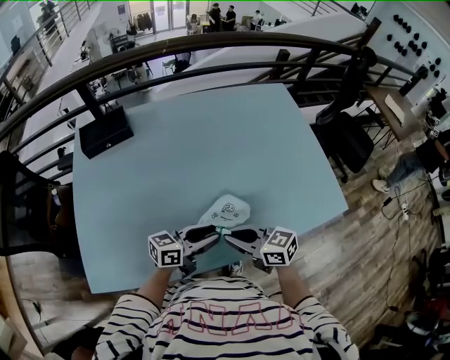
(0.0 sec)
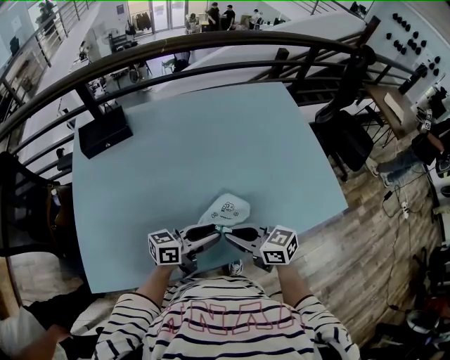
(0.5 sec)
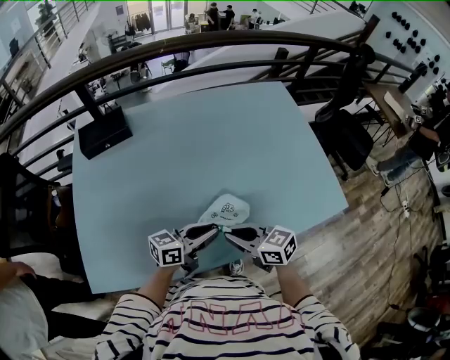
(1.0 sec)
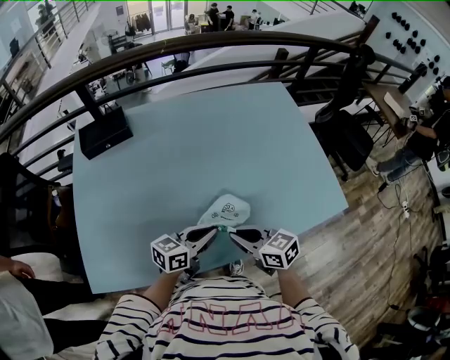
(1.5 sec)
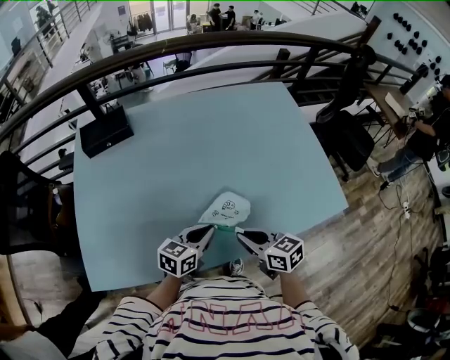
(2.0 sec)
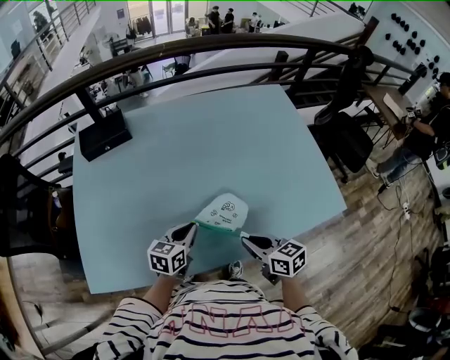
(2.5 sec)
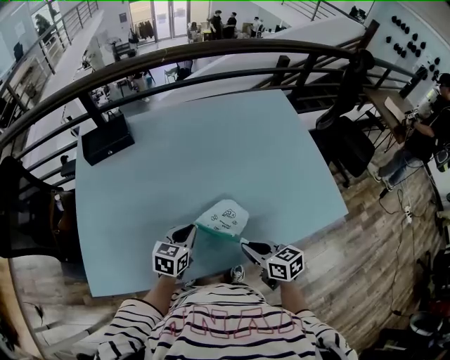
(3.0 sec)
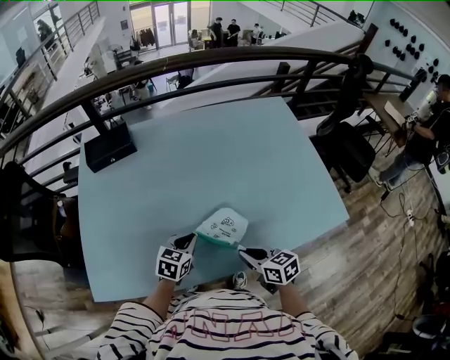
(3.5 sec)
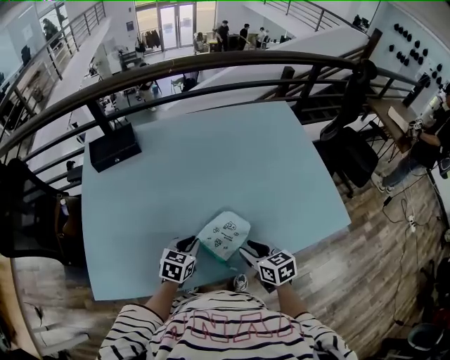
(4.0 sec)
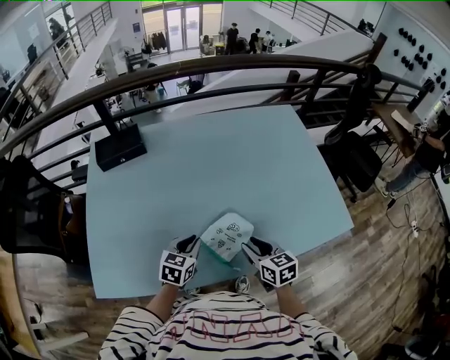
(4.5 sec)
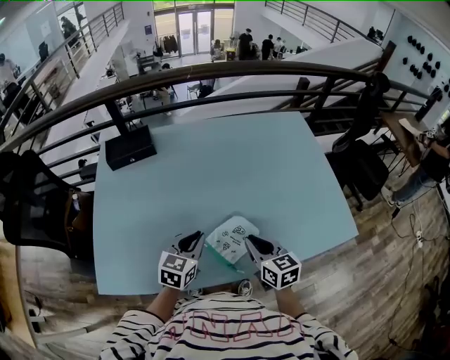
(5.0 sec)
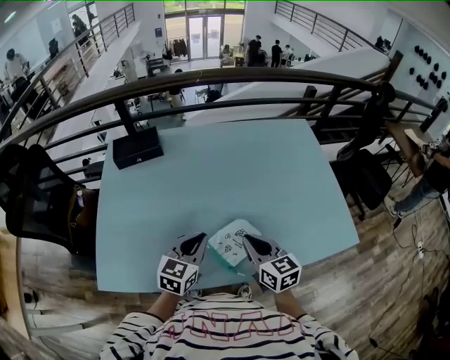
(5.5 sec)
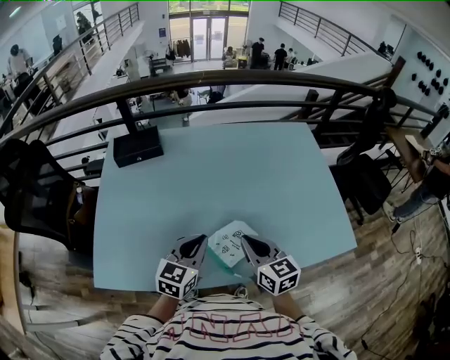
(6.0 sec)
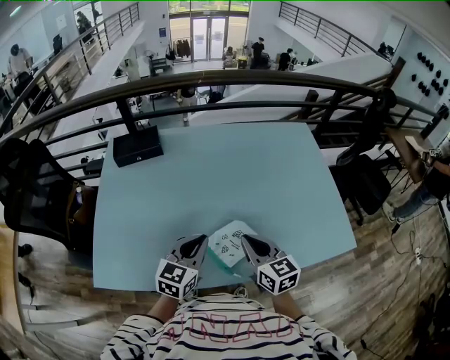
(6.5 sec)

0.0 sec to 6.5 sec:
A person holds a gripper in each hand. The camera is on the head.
0.0 sec to 2.0 sec: The left gripper turns by approximately 30 degrees, and closes, while the right gripper changes place by about 5 cm.
2.0 sec to 4.5 sec: The right gripper opens. Meanwhile the left gripper goes approximately 5 cm to the left, and changes its angle by approximately 20 degrees.
4.5 sec to 6.5 sec: The grippers both shift upward by approximately 10 cm. The right gripper closes up.

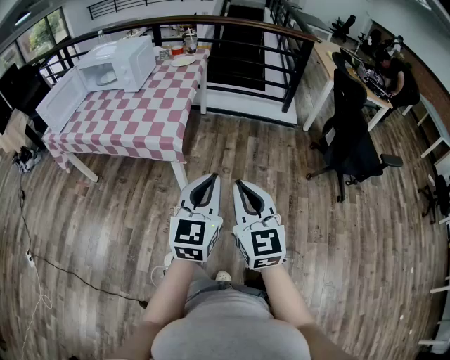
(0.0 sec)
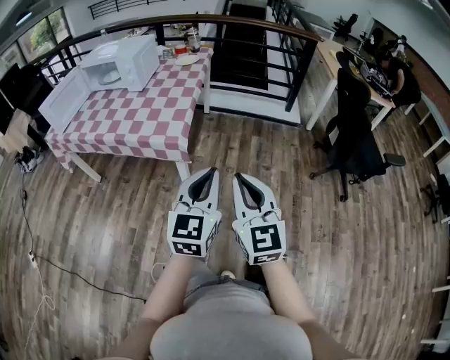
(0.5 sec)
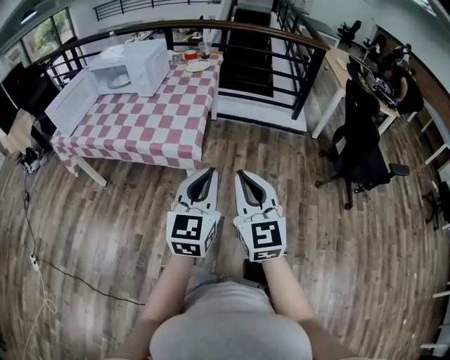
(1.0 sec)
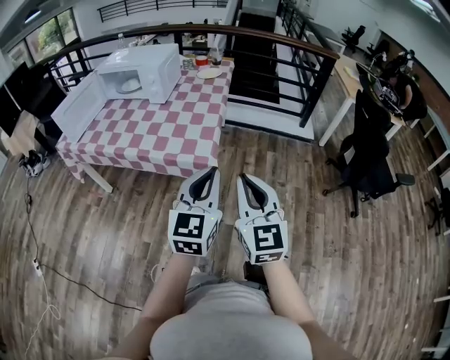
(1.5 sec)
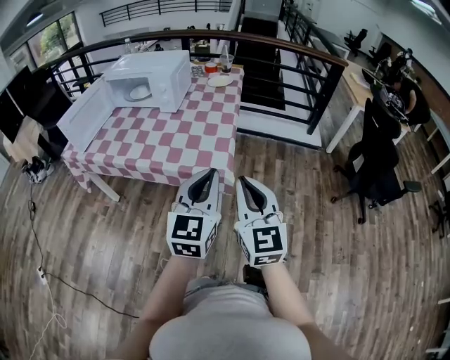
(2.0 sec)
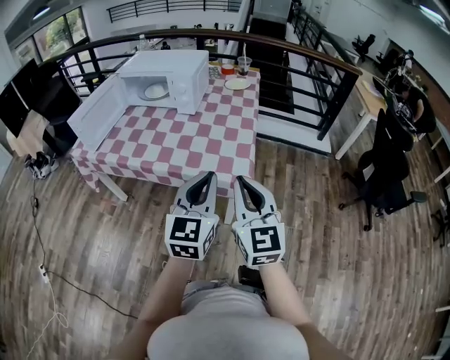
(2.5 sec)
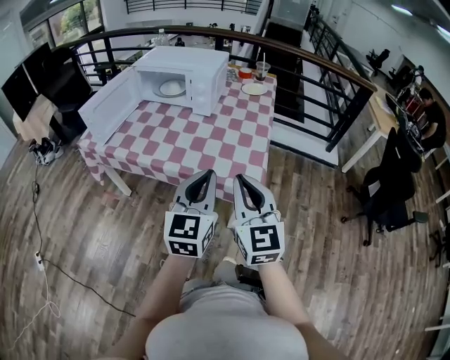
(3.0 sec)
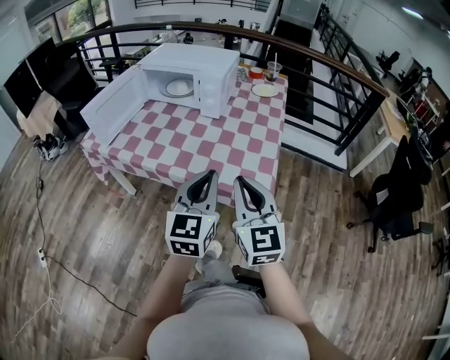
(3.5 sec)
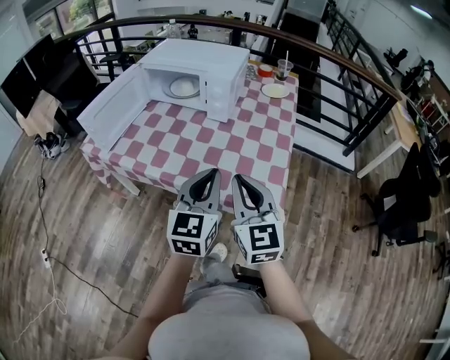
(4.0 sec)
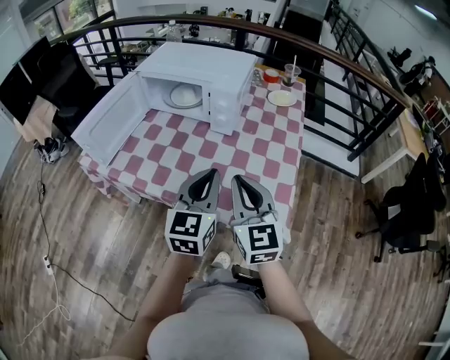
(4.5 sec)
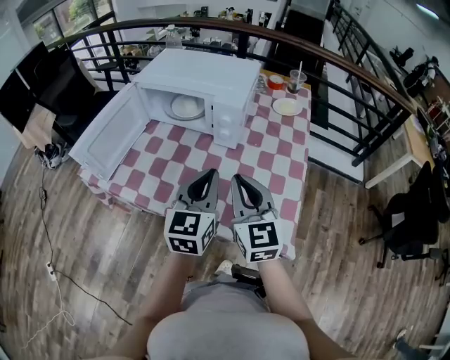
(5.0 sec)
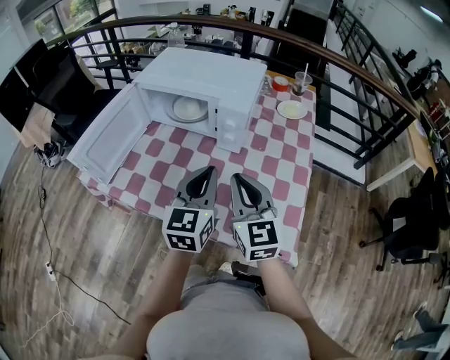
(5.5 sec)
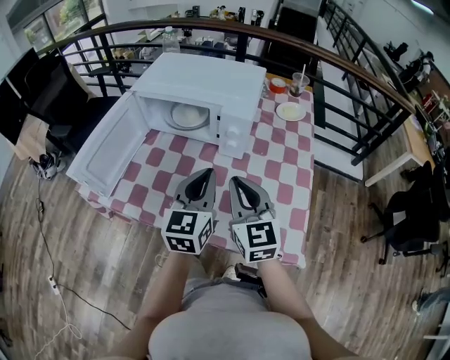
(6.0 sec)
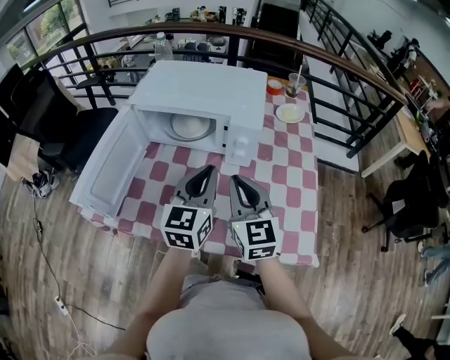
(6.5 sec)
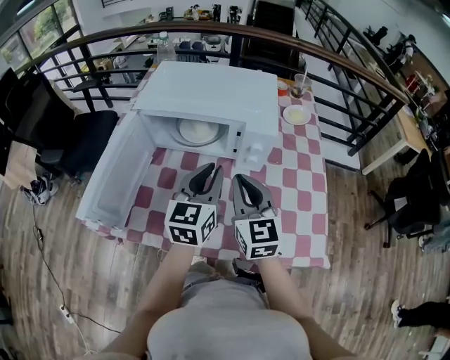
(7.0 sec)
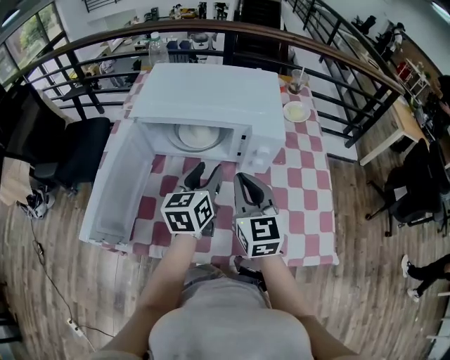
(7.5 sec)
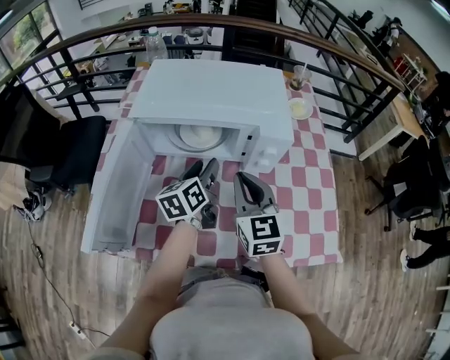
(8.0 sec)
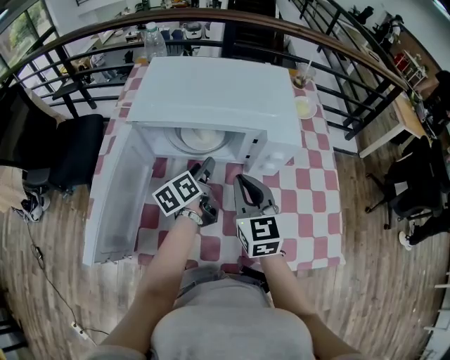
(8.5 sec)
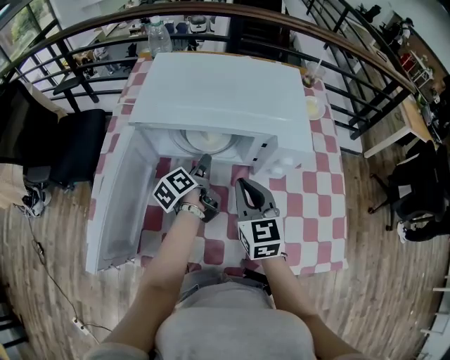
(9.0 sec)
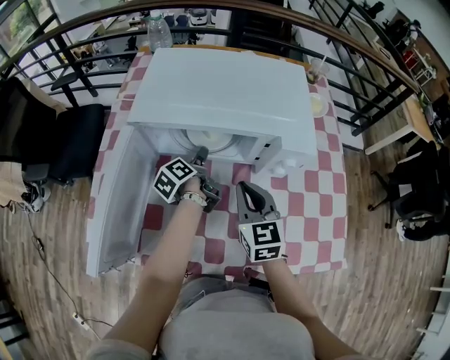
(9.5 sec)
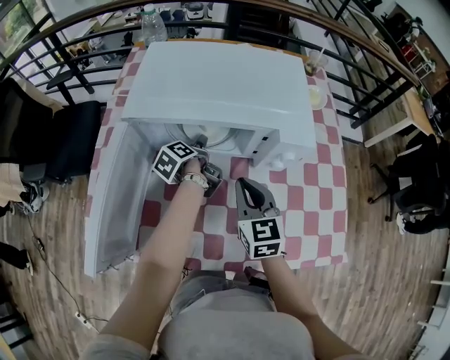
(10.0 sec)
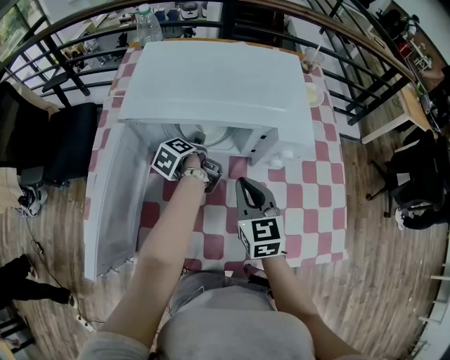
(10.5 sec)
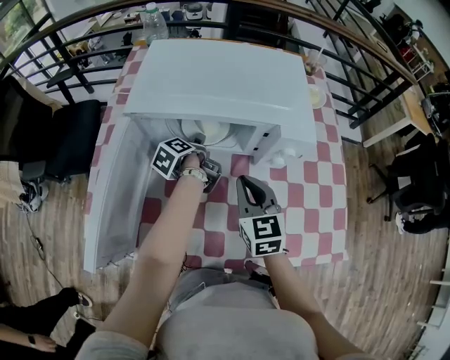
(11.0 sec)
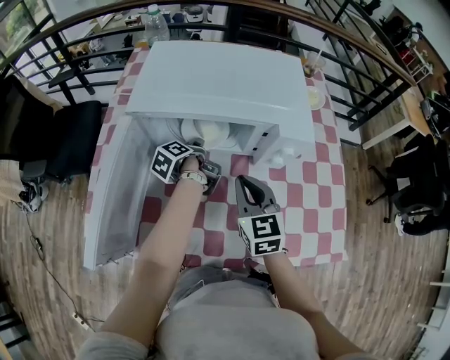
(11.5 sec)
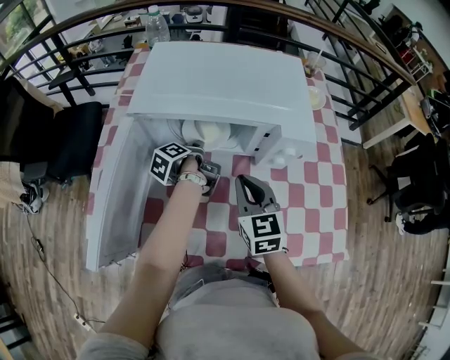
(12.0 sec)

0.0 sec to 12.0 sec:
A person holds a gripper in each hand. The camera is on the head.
0.0 sec to 2.0 sec: Both grippers travel together to the left and forward, about 25 cm.
2.0 sec to 4.0 sec: The two grippers go some 25 cm to the left and forward.
4.0 sec to 6.0 sec: The grippers both shift forward by roughly 20 cm.
6.0 sec to 8.0 sec: The left gripper moves forward, to the left and downward, approximately 25 cm, changes its angle by some 30 degrees, and opens up, while the right gripper heads to the left and forward, covering some 15 cm.
8.0 sec to 10.0 sec: The right gripper is displaced downward by approximately 5 cm; the left gripper goes approximately 15 cm downward, forward and to the left, changes its angle by approximately 50 degrees, and opens.
10.0 sec to 12.0 sec: The left gripper closes its fingers.

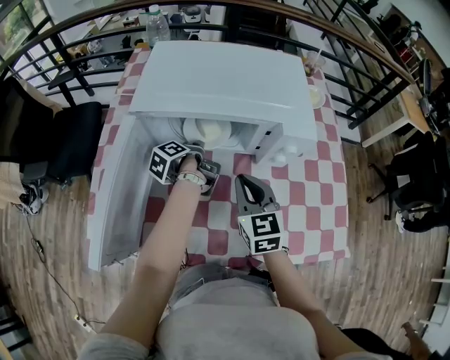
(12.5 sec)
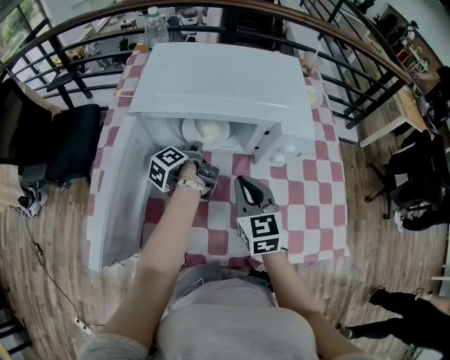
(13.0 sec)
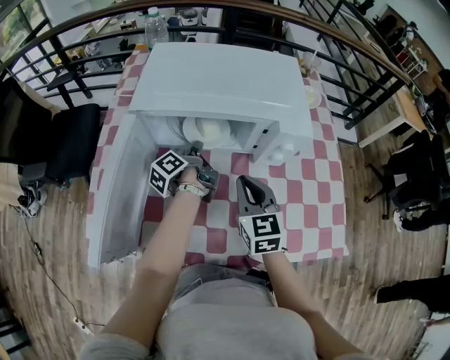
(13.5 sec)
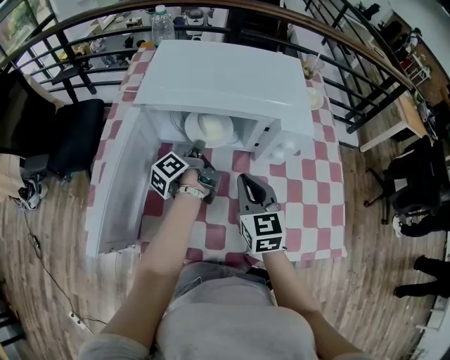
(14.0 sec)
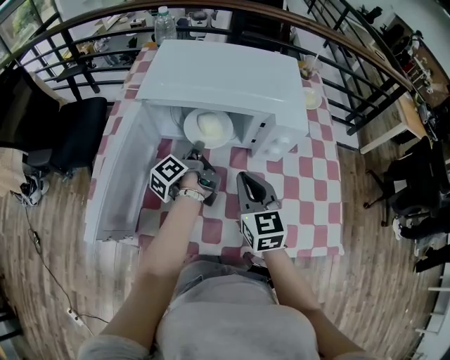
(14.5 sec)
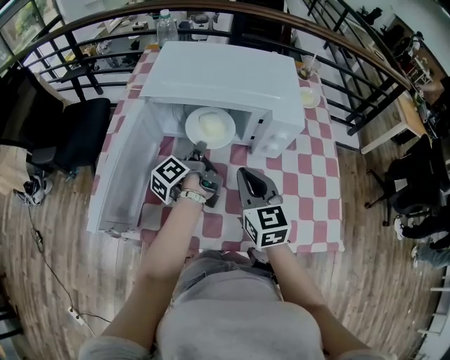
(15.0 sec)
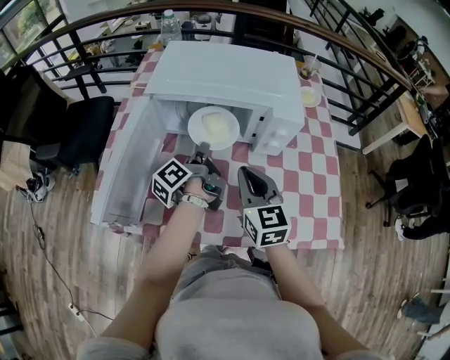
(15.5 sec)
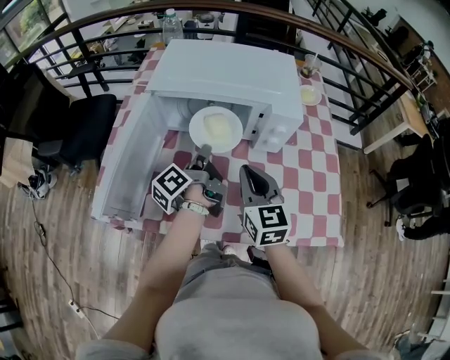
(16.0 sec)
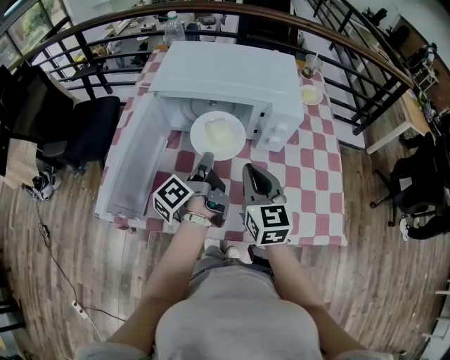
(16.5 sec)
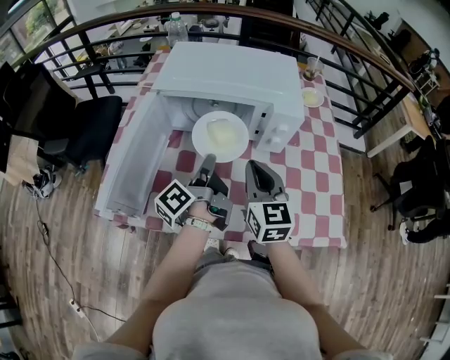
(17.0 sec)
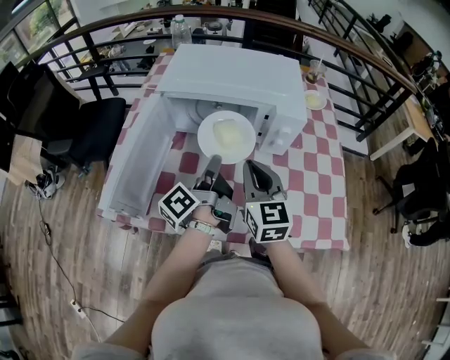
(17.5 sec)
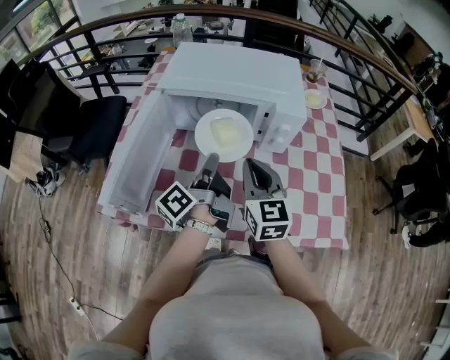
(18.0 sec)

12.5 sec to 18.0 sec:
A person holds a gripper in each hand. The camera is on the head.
12.5 sec to 14.5 sec: The left gripper heads upward, covering about 5 cm, and changes its angle by about 20 degrees.
14.5 sec to 16.0 sec: The right gripper changes place by roughly 5 cm. The left gripper is displaced backward and upward by roughly 10 cm.
16.0 sec to 18.0 sec: The left gripper moves backward, roughly 5 cm.

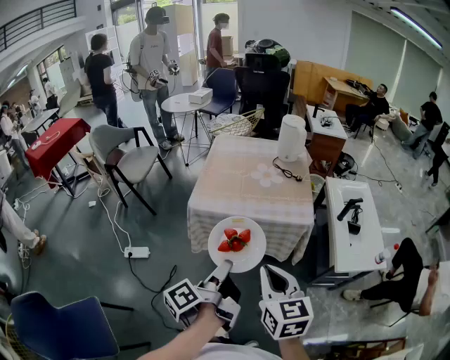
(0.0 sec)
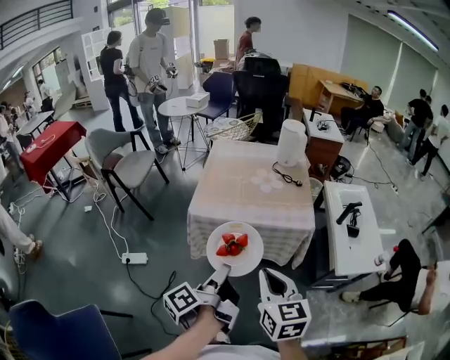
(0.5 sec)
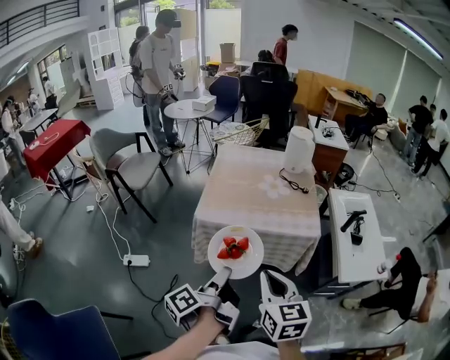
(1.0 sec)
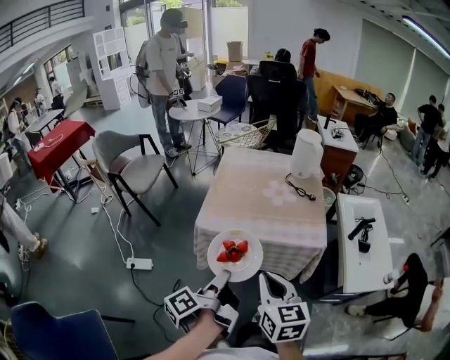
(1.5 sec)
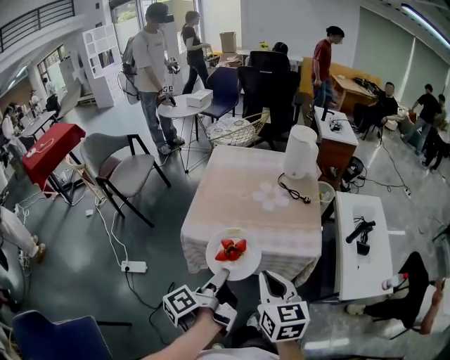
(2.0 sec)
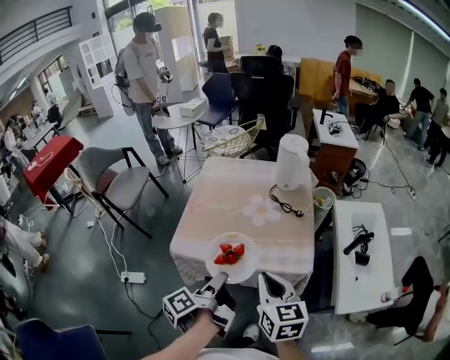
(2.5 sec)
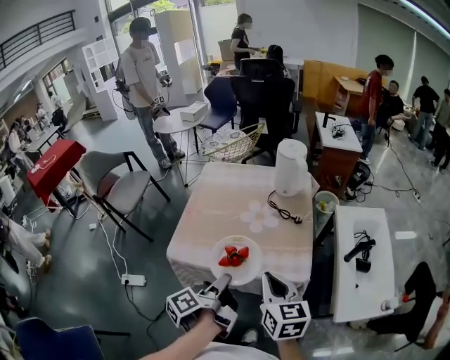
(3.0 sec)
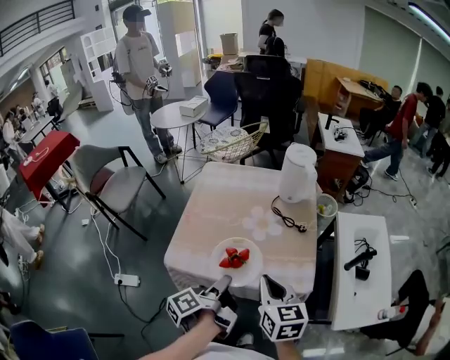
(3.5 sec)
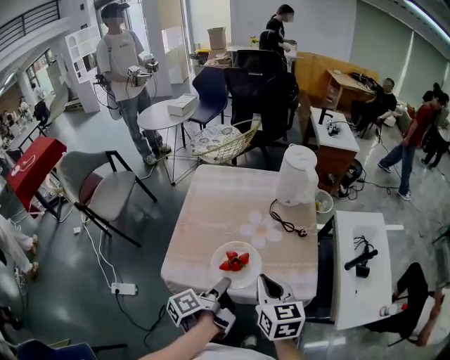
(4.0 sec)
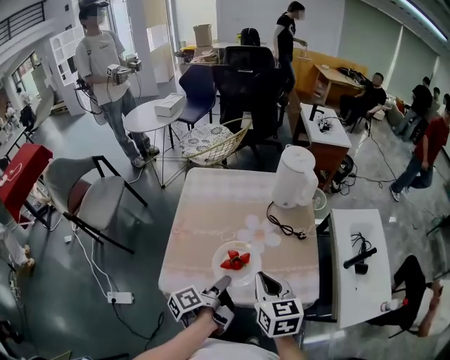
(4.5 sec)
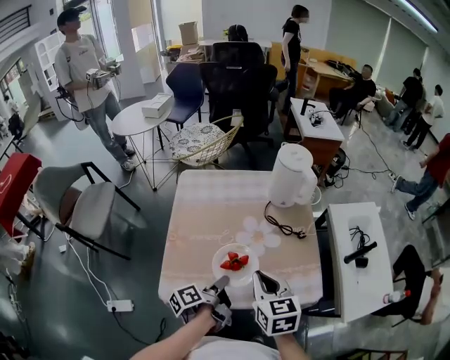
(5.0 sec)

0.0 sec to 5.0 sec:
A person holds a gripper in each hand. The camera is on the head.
0.0 sec to 2.5 sec: The right gripper moves roughly 25 cm.
2.5 sec to 5.0 sec: The right gripper shifts by about 20 cm.
